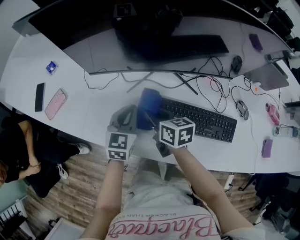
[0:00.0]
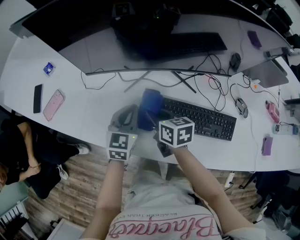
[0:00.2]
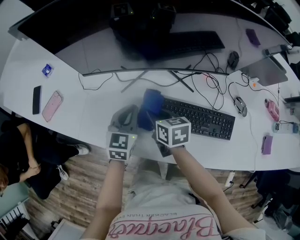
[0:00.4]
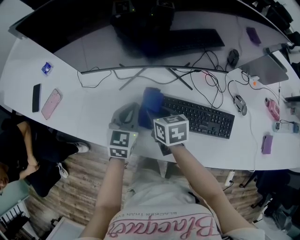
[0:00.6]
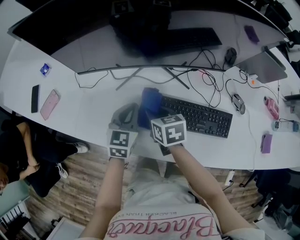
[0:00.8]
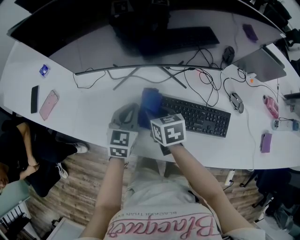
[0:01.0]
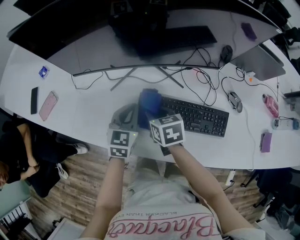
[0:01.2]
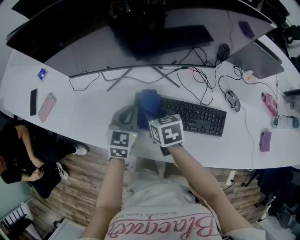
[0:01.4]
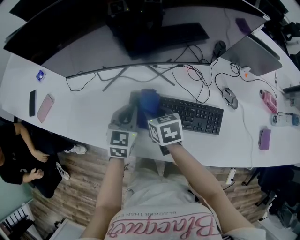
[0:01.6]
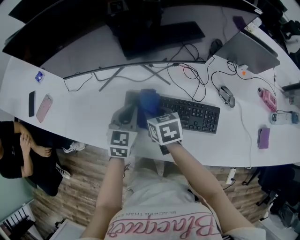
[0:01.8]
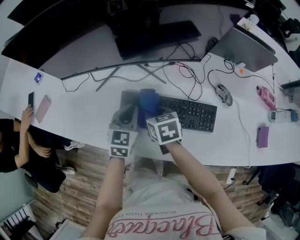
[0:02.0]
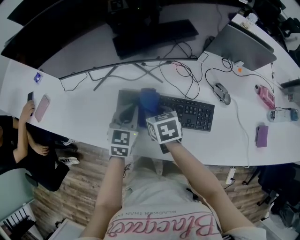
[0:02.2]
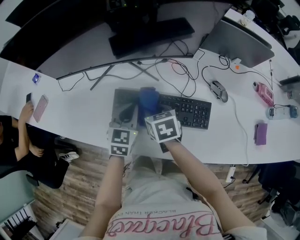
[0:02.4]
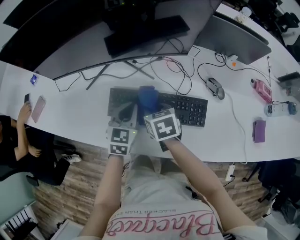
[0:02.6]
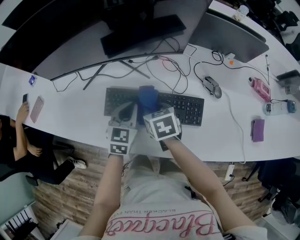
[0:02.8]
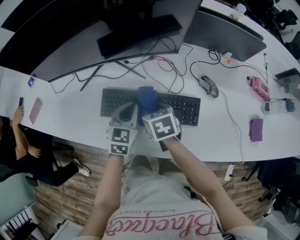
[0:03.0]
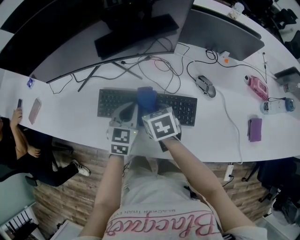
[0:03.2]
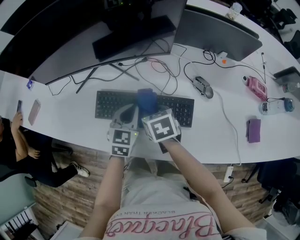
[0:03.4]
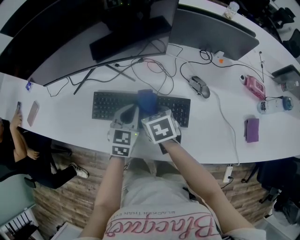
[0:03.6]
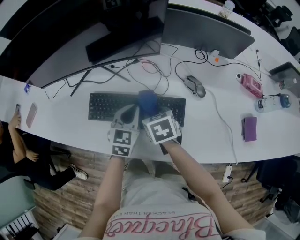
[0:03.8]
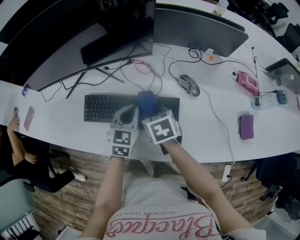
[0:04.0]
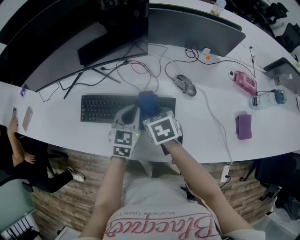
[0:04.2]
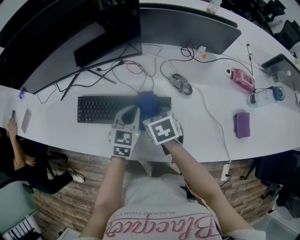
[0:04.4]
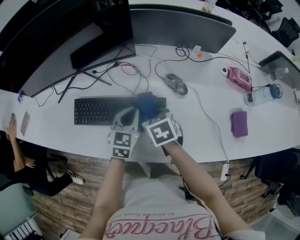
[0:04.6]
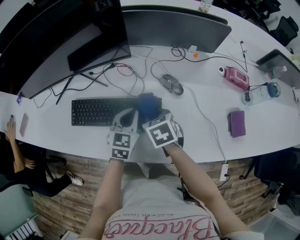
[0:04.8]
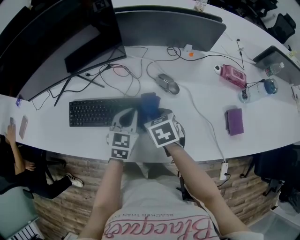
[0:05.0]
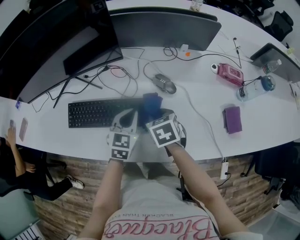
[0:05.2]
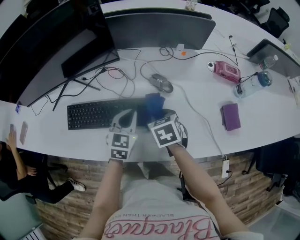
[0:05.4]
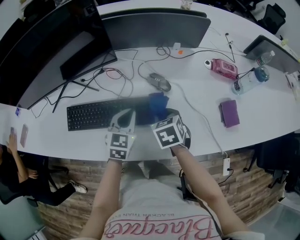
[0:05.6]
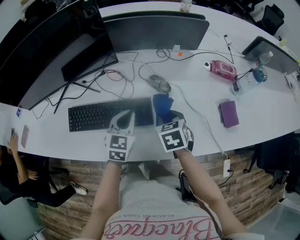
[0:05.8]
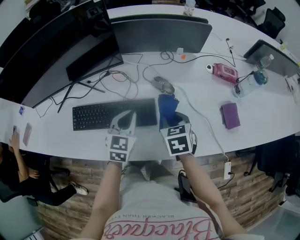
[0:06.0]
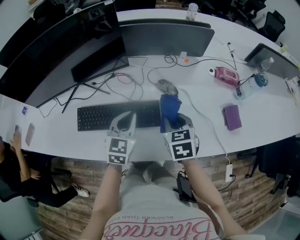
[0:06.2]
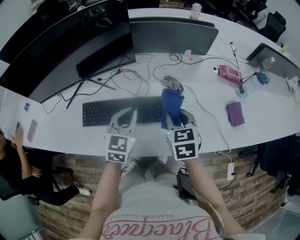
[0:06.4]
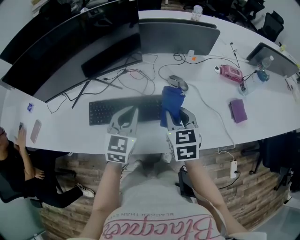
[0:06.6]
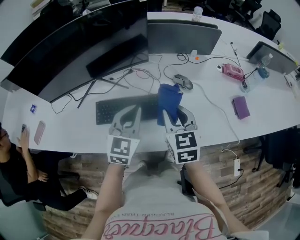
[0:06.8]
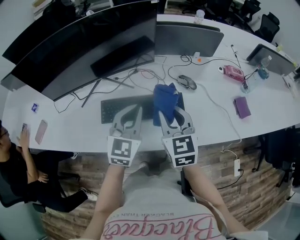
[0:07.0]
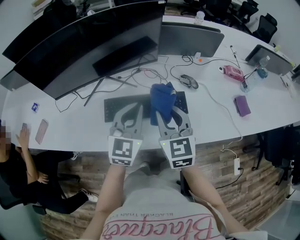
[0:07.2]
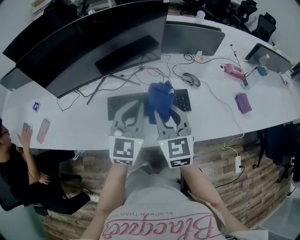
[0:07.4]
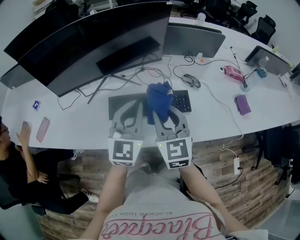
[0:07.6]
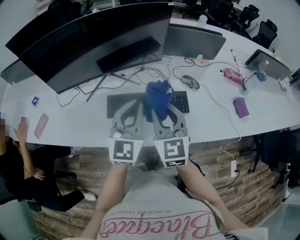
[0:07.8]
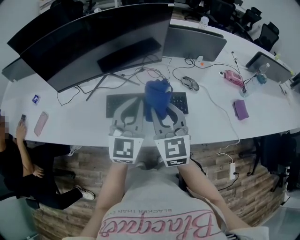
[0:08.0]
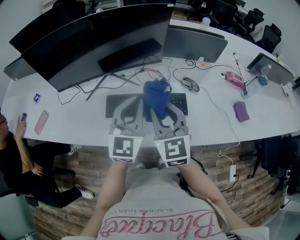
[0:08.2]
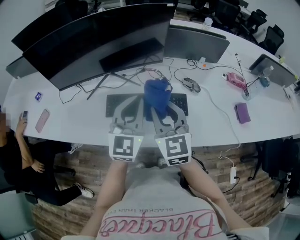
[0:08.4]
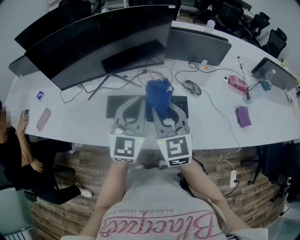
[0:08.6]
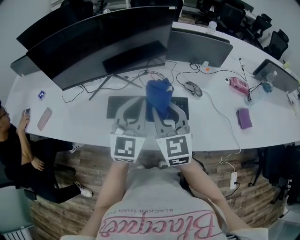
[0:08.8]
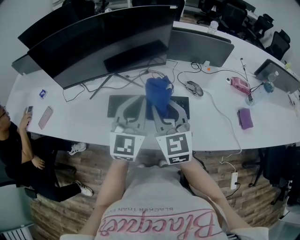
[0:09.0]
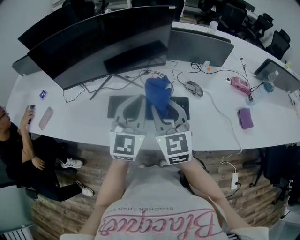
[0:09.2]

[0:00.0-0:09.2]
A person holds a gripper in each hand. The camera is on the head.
0:00.0 to 0:01.6: Both grippers move to the right, approximately 10 cm.
0:01.6 to 0:03.0: The two grippers go some 15 cm to the right.
0:03.0 to 0:04.6: Both grippers move to the right, approximately 15 cm.
0:04.6 to 0:06.2: The right gripper heads to the right and upward, covering some 15 cm, and rotates roughly 20 degrees. Meanwhile the left gripper heads upward, covering approximately 5 cm.
0:06.2 to 0:07.6: Both grippers travel together to the left, upward and backward, approximately 25 cm. The right gripper tips its fingers upward by roughly 30 degrees. The left gripper rotates some 20 degrees.
0:07.6 to 0:09.2: The grippers make only small movements.

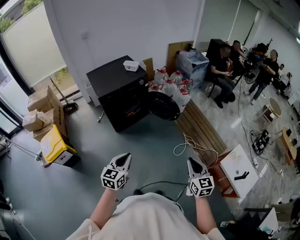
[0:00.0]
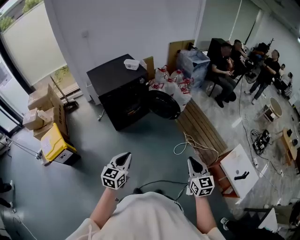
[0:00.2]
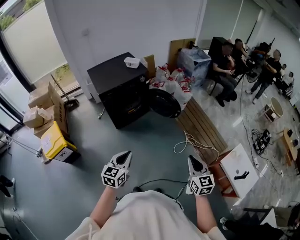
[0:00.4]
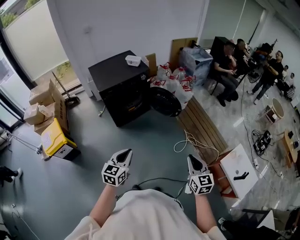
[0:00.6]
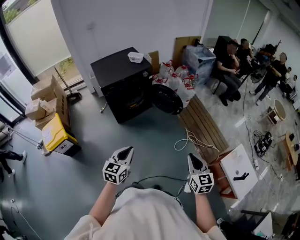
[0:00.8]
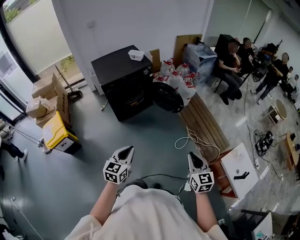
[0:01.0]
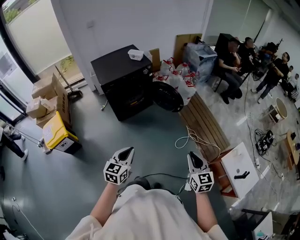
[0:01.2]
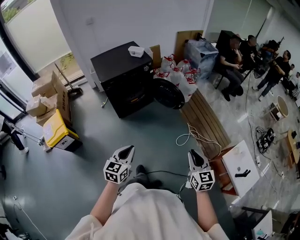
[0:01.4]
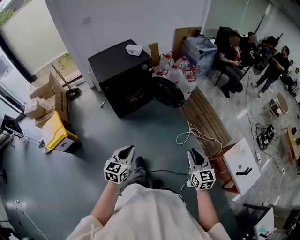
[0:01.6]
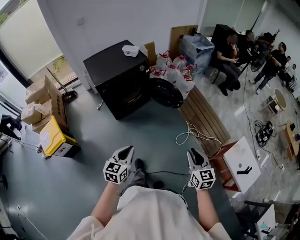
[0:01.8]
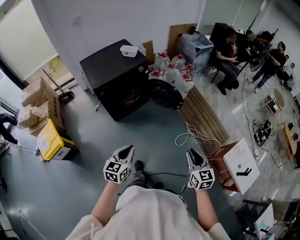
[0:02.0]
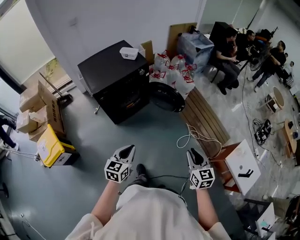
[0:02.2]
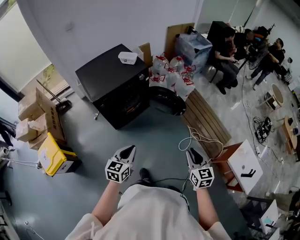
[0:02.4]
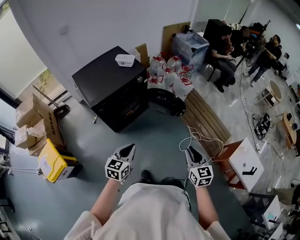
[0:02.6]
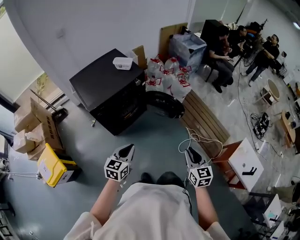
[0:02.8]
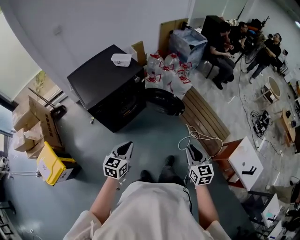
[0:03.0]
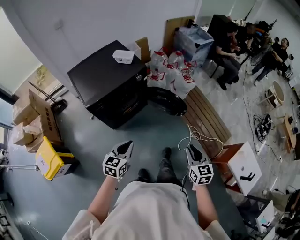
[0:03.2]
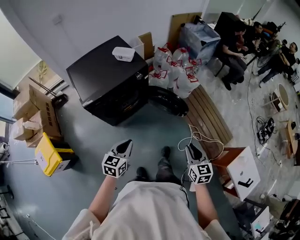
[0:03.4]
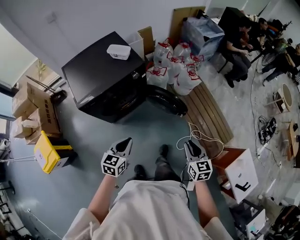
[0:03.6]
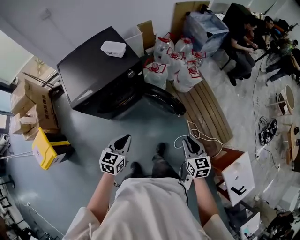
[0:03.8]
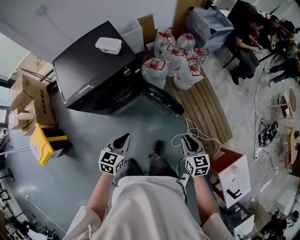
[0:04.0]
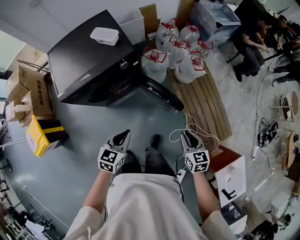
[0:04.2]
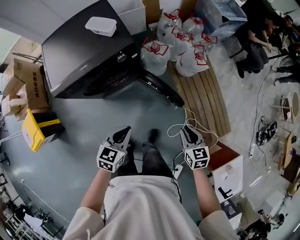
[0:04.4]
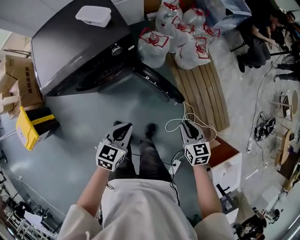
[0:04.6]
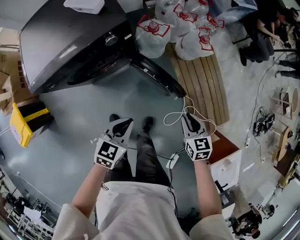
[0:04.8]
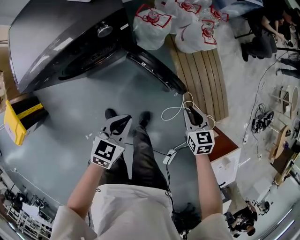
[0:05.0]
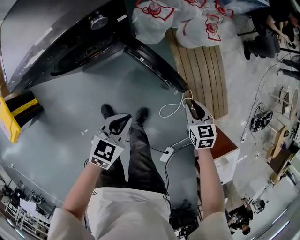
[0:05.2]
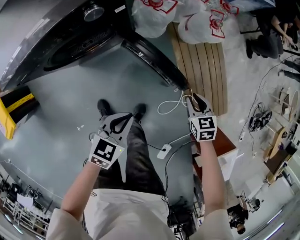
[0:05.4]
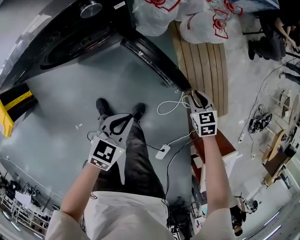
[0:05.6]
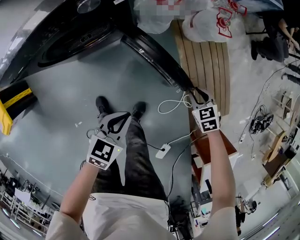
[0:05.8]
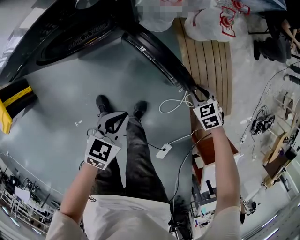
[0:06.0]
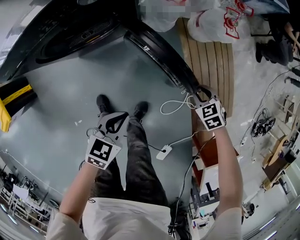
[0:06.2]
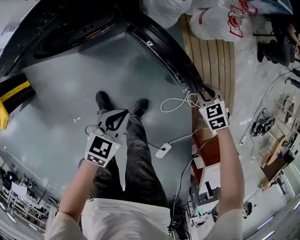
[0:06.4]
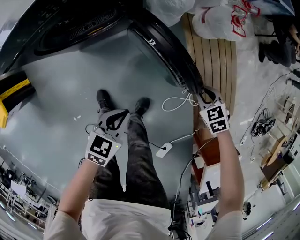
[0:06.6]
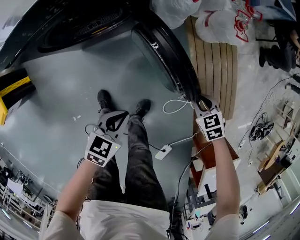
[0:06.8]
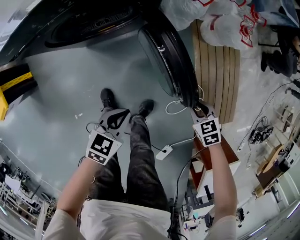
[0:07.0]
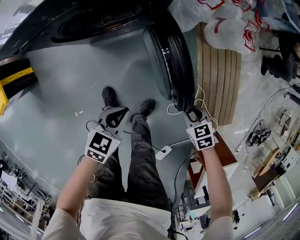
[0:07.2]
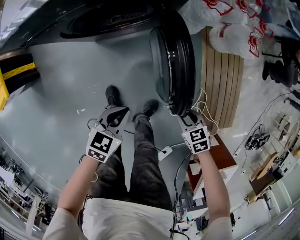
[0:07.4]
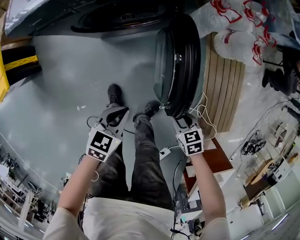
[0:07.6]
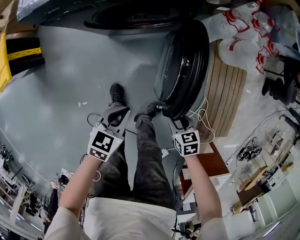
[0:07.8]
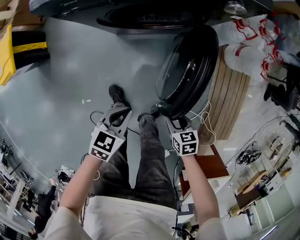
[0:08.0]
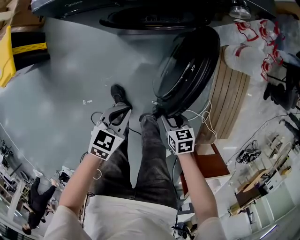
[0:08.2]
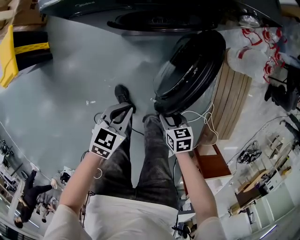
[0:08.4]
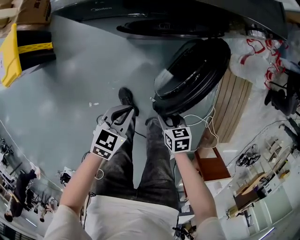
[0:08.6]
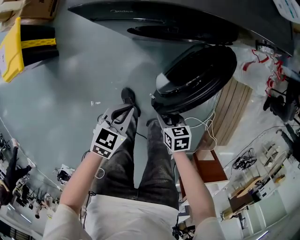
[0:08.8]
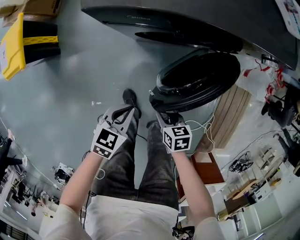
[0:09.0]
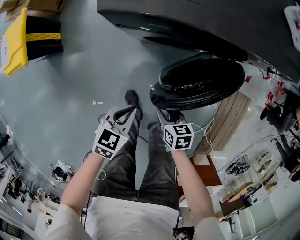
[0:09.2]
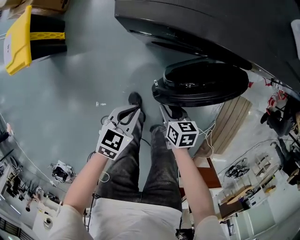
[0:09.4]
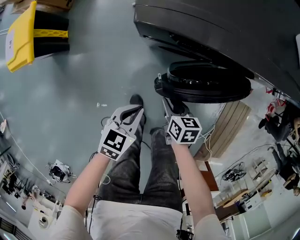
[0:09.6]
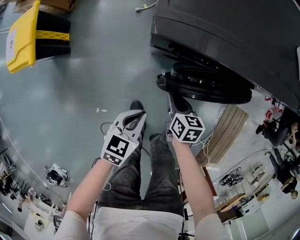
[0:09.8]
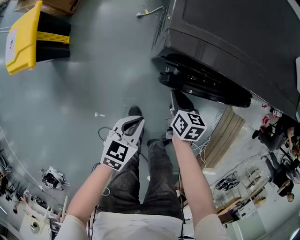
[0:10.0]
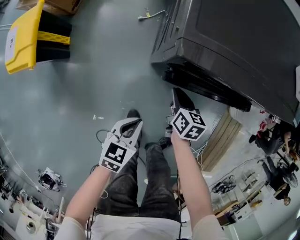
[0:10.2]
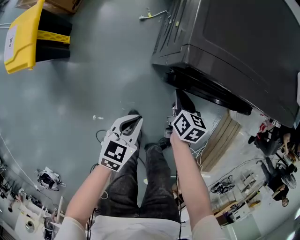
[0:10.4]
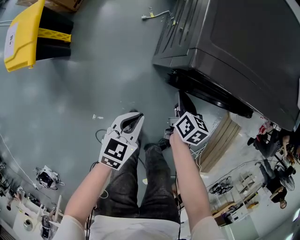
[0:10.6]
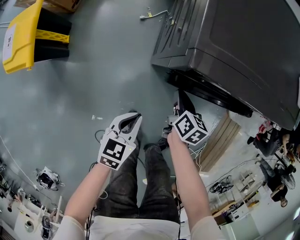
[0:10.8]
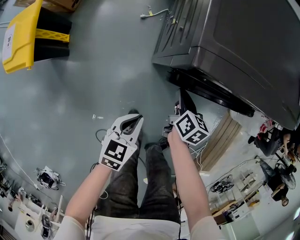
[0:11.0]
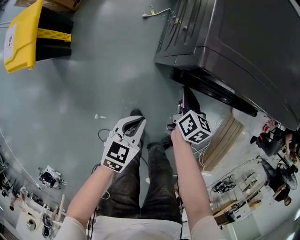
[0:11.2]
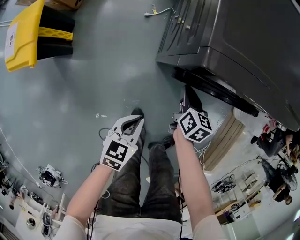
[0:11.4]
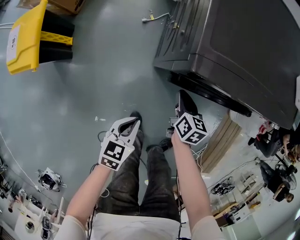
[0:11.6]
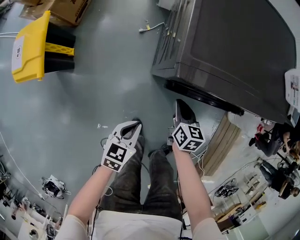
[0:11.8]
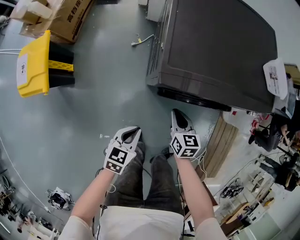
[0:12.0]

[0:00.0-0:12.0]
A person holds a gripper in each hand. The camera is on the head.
0:00.0 to 0:01.6: The grippers stay close to where they were, moving slightly.
0:01.6 to 0:03.0: The two grippers go approximately 25 cm forward and to the left.
0:03.0 to 0:04.4: The left gripper is displaced forward, to the right and downward by roughly 30 cm. Meanwhile the right gripper moves forward and downward, roughly 35 cm, and swivels approximately 30 degrees.
0:04.4 to 0:06.0: The two grippers go about 30 cm downward. The right gripper swivels some 40 degrees.
0:06.0 to 0:07.6: The right gripper goes approximately 25 cm to the left and backward. The left gripper is displaced to the left by approximately 15 cm.
0:07.6 to 0:09.0: Both grippers travel together to the left and forward, about 25 cm.
0:09.0 to 0:10.4: The left gripper goes roughly 15 cm to the left and forward. Meanwhile the right gripper travels forward and to the left by about 25 cm, turns by about 20 degrees, and closes up.
0:10.4 to 0:12.0: The left gripper travels upward by roughly 10 cm; the right gripper moves upward, roughly 10 cm.

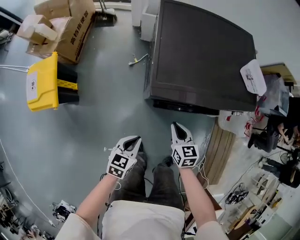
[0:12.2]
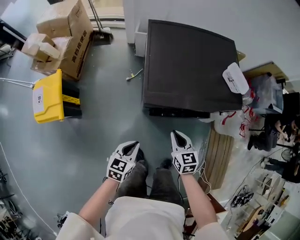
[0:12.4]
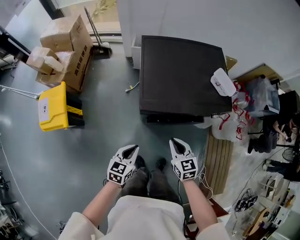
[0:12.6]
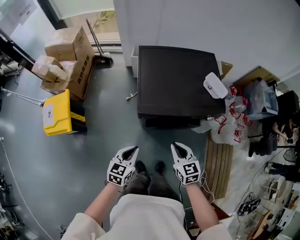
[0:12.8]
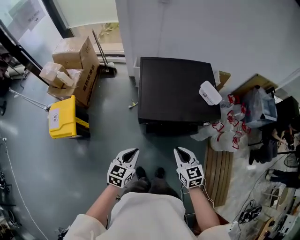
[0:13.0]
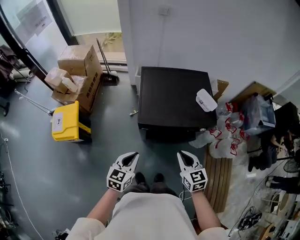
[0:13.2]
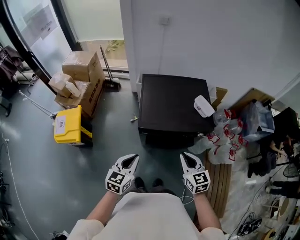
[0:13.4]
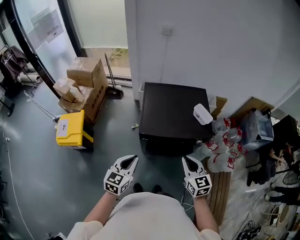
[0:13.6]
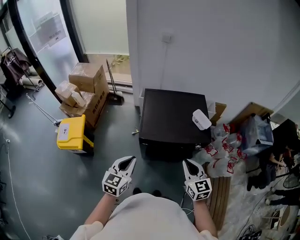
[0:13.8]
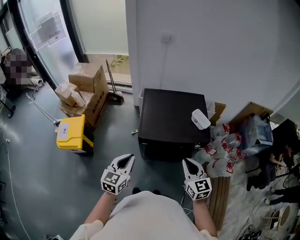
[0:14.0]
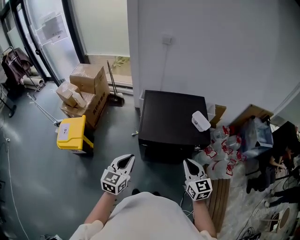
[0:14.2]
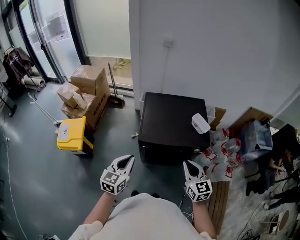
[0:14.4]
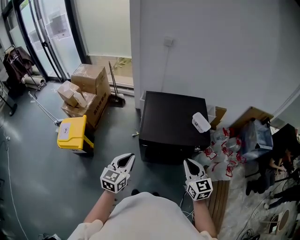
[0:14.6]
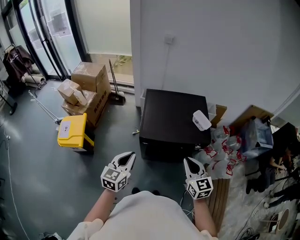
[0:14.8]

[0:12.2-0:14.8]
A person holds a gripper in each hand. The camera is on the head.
0:12.2 to 0:13.4: The two grippers go roughly 35 cm upward. The left gripper swivels about 20 degrees.
0:13.4 to 0:14.8: The two grippers go some 5 cm upward.
